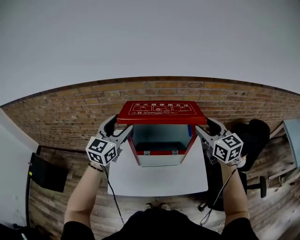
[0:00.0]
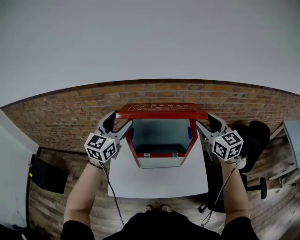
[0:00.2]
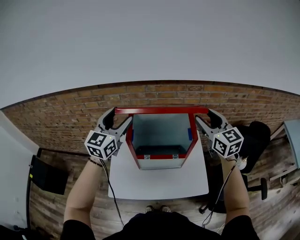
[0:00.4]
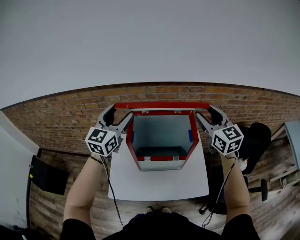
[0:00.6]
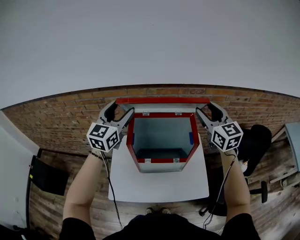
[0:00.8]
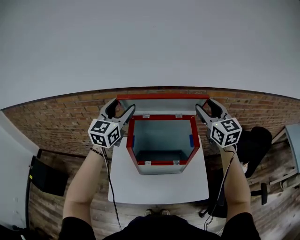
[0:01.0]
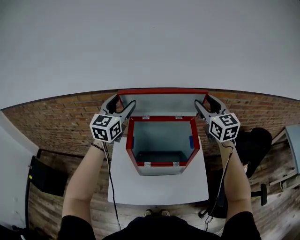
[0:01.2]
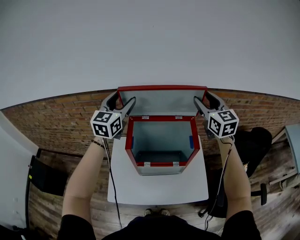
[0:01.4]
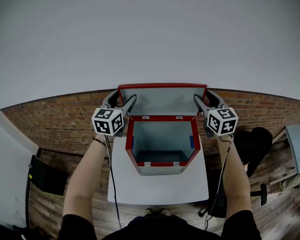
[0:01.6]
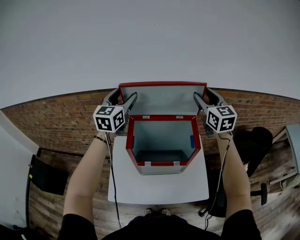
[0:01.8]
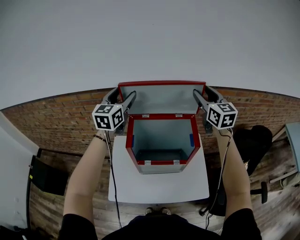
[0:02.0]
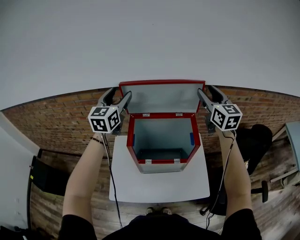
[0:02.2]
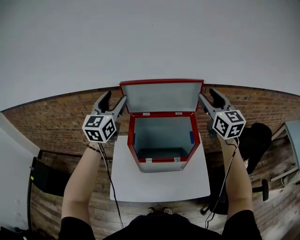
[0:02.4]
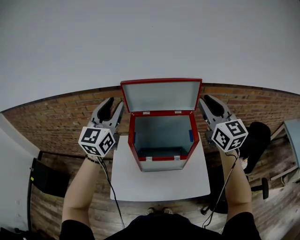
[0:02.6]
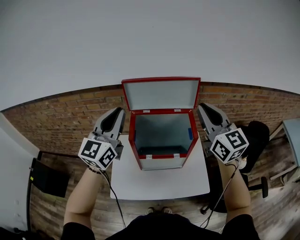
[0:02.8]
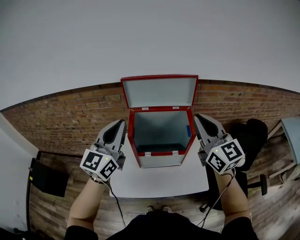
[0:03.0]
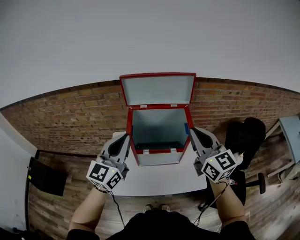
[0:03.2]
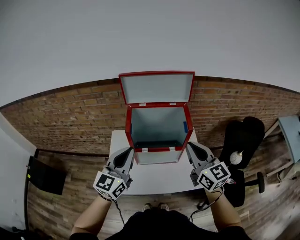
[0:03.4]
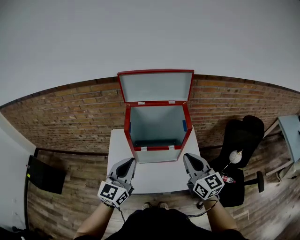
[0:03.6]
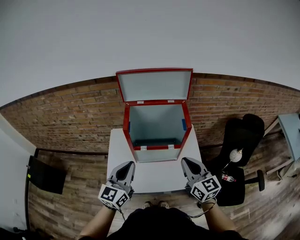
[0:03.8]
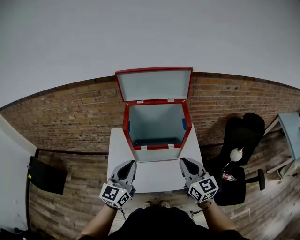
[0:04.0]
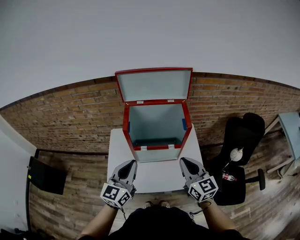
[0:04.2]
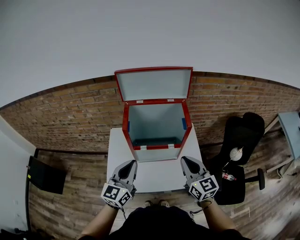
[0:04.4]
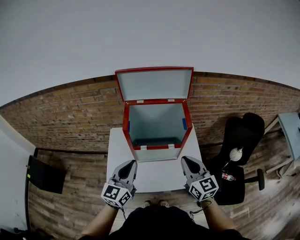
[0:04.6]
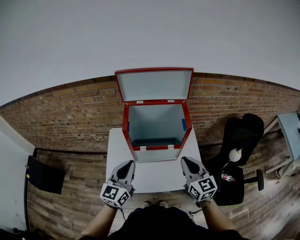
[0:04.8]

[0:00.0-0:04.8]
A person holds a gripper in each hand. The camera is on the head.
0:00.0 to 0:01.6: The two grippers go about 20 cm forward and upward.
0:01.6 to 0:03.2: Both grippers travel together backward, about 25 cm. The left gripper closes. Meanwhile the right gripper closes.
0:03.2 to 0:04.8: The two grippers go approximately 15 cm downward.

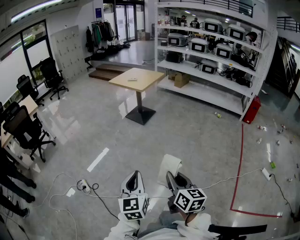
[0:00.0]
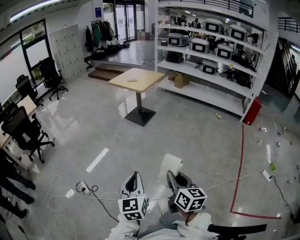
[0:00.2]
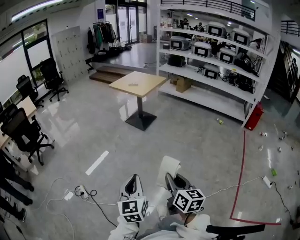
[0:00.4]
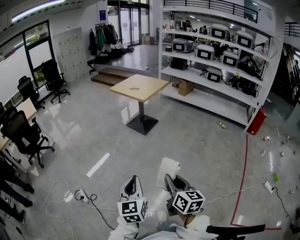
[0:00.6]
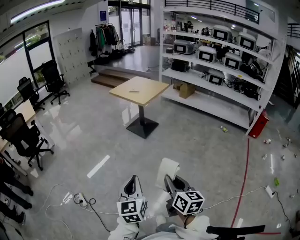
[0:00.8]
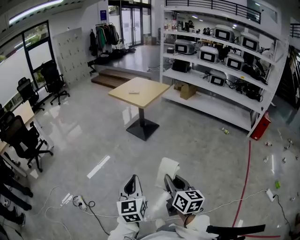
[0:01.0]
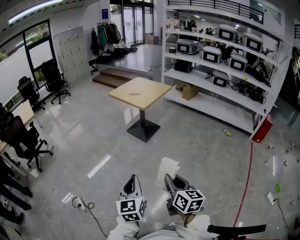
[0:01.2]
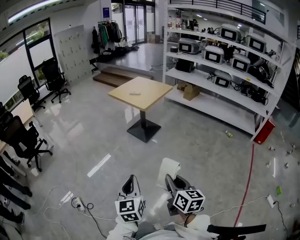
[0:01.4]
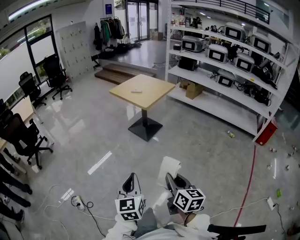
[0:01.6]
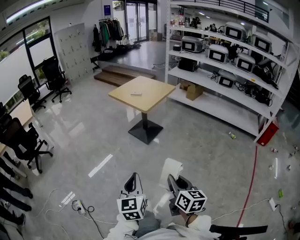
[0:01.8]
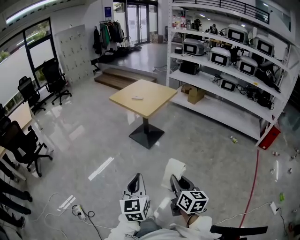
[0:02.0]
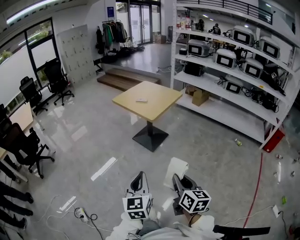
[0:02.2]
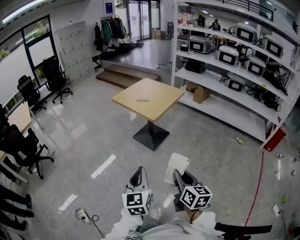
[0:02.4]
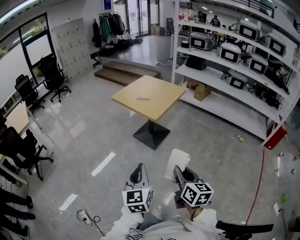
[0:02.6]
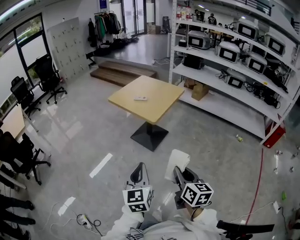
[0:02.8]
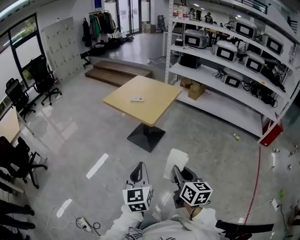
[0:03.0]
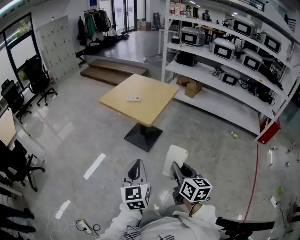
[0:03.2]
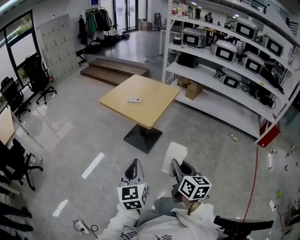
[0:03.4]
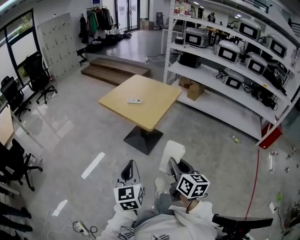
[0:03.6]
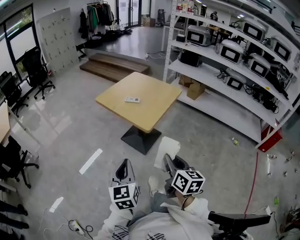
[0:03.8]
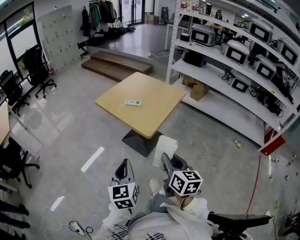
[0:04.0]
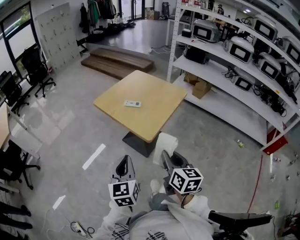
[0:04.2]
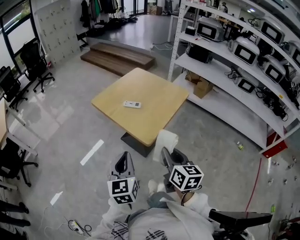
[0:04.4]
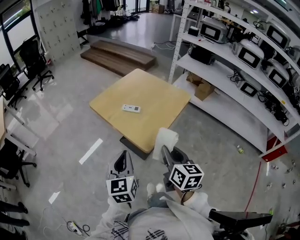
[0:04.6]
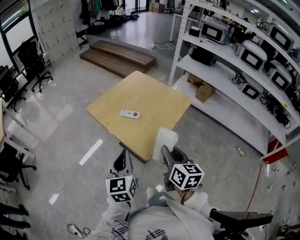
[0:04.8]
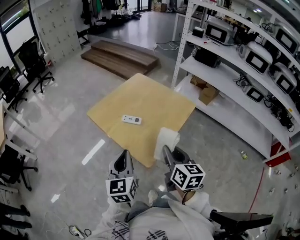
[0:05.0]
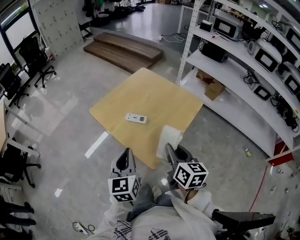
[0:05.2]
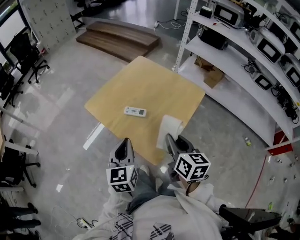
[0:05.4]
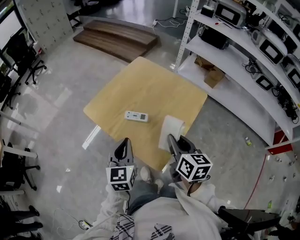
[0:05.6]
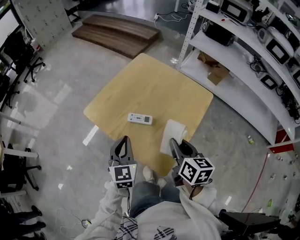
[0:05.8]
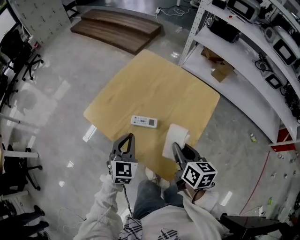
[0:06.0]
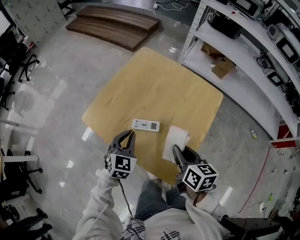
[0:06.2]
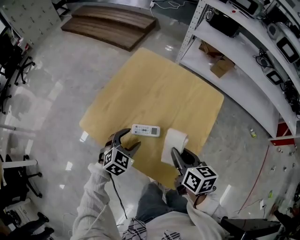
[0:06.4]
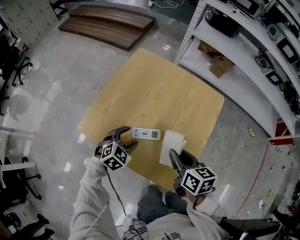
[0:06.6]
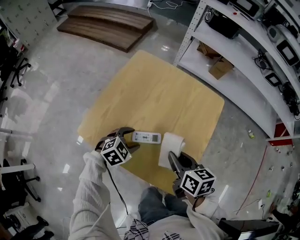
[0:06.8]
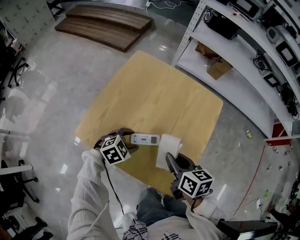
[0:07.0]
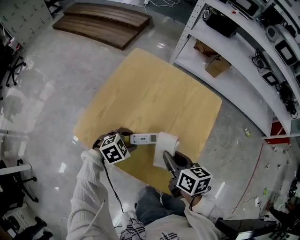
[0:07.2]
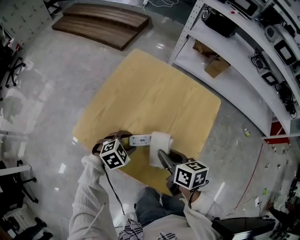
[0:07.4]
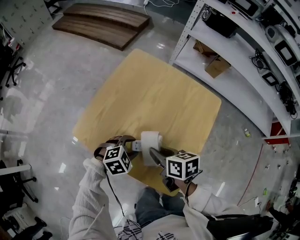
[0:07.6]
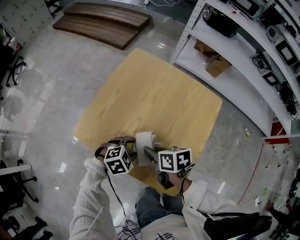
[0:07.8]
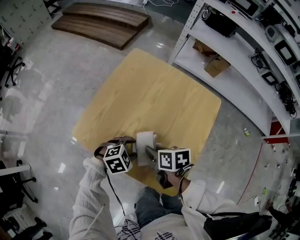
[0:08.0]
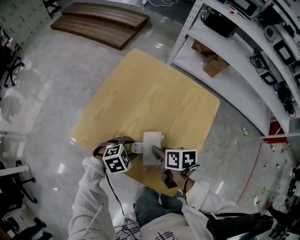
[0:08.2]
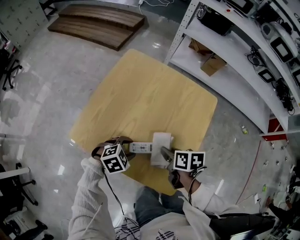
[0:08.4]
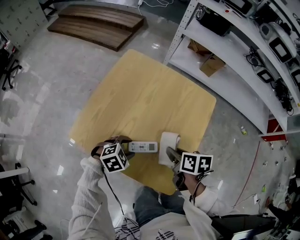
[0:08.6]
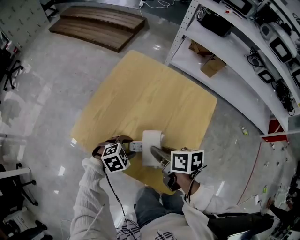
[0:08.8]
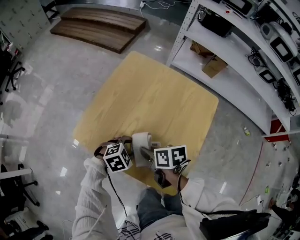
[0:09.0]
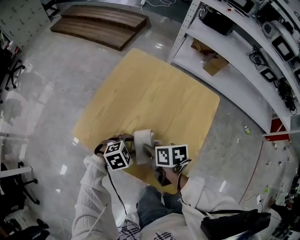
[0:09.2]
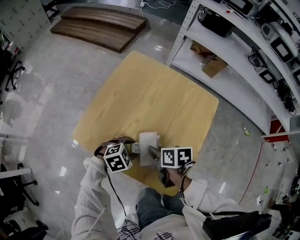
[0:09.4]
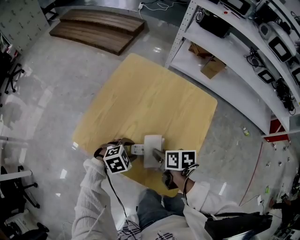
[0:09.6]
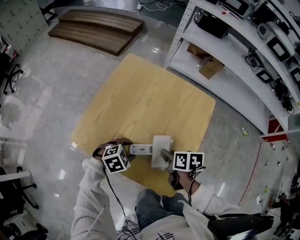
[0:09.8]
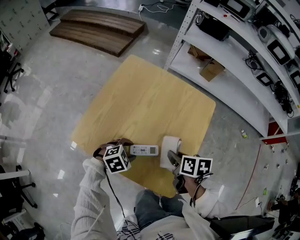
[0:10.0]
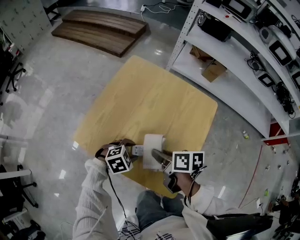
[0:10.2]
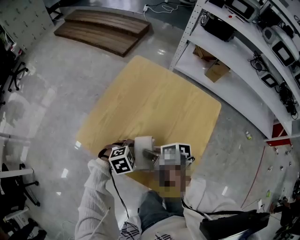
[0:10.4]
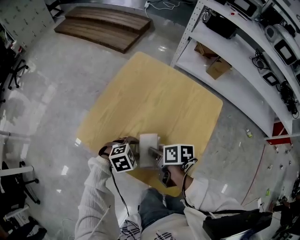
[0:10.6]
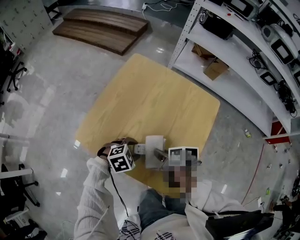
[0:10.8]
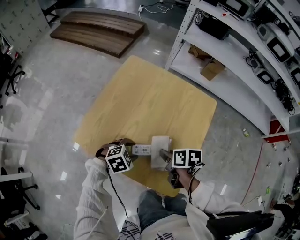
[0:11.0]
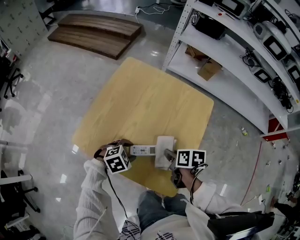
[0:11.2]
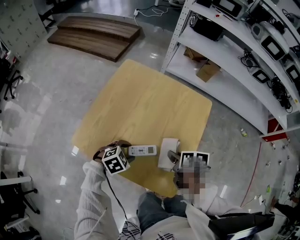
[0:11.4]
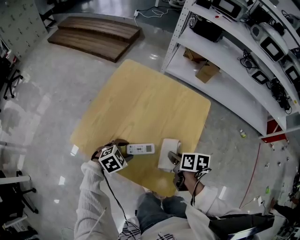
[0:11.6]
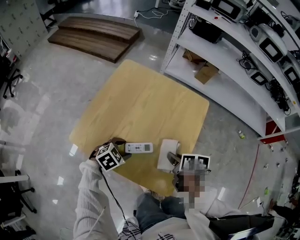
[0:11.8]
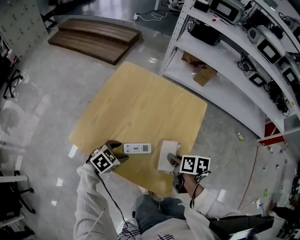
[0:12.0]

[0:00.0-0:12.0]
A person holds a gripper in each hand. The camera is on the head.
0:00.0 to 0:01.6: Both grippers move forward, approximately 30 cm.
0:01.6 to 0:03.0: The two grippers go about 30 cm forward.
0:03.0 to 0:04.4: Both grippers travel together forward, about 30 cm.
0:04.4 to 0:06.0: The two grippers go roughly 30 cm forward. The left gripper changes its angle by some 30 degrees.
0:06.0 to 0:07.6: The right gripper changes place by roughly 15 cm, and rotates about 20 degrees; the left gripper is displaced downward by approximately 10 cm, points its fingers roughly 30 degrees further downward, and opens.
0:10.4 to 0:12.0: The right gripper moves roughly 15 cm, and swivels approximately 20 degrees.

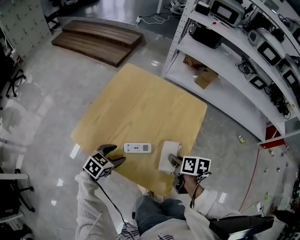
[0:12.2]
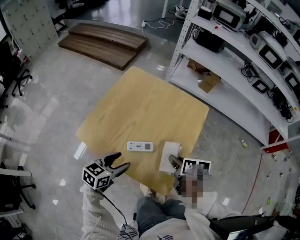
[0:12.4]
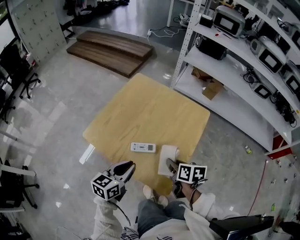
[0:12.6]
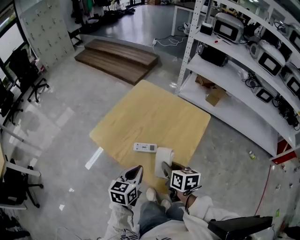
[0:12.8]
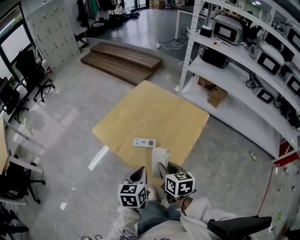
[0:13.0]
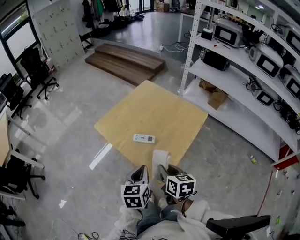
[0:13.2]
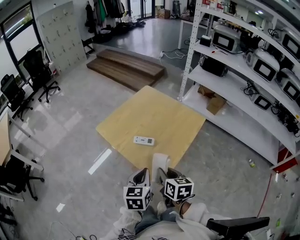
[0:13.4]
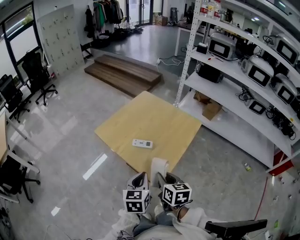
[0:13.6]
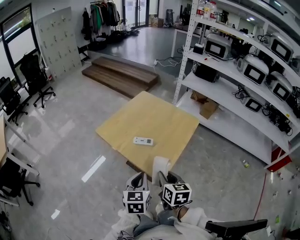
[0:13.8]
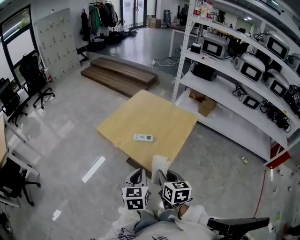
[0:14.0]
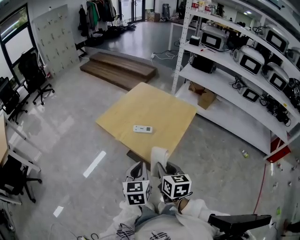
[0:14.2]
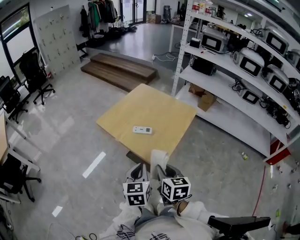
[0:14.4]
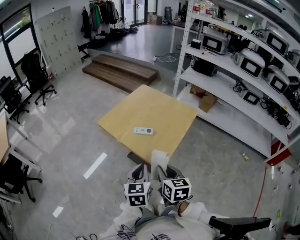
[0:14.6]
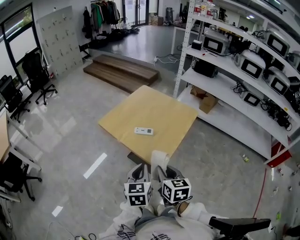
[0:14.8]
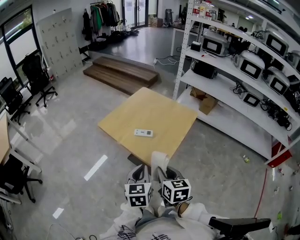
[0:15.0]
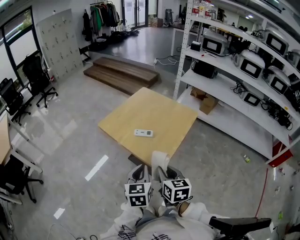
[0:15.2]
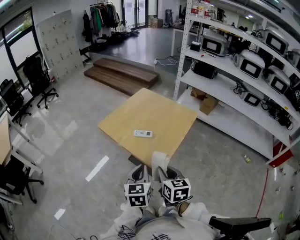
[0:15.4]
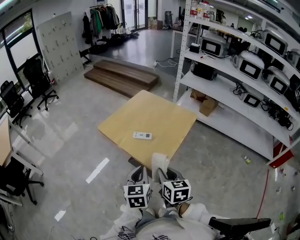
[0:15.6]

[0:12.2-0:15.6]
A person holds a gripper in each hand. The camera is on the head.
0:12.2 to 0:13.8: The left gripper changes place by roughly 30 cm, changes its angle by about 50 degrees, and closes its fingers, while the right gripper shifts by about 25 cm, and turns by approximately 40 degrees.
0:13.8 to 0:15.6: The right gripper shifts by approximately 5 cm.

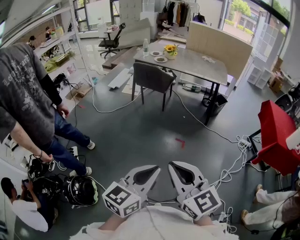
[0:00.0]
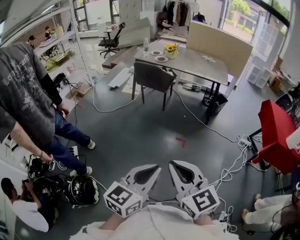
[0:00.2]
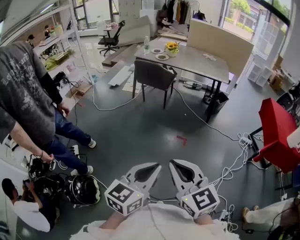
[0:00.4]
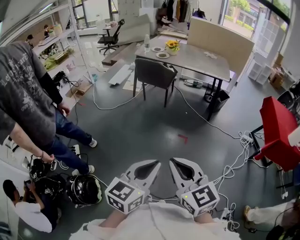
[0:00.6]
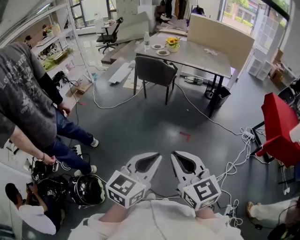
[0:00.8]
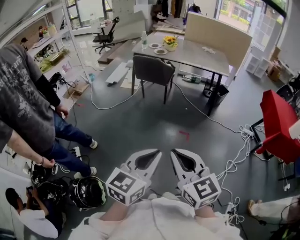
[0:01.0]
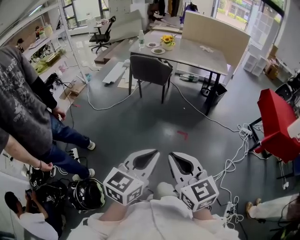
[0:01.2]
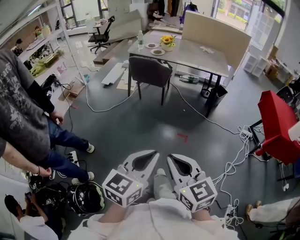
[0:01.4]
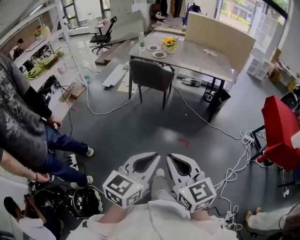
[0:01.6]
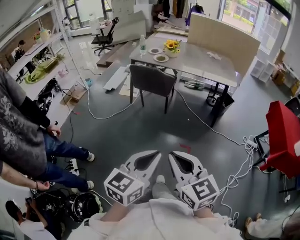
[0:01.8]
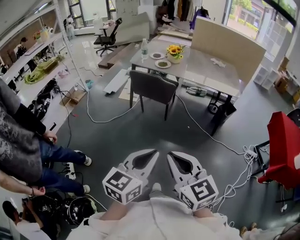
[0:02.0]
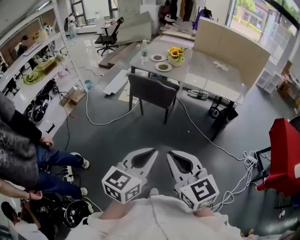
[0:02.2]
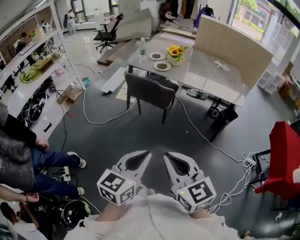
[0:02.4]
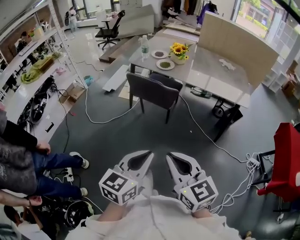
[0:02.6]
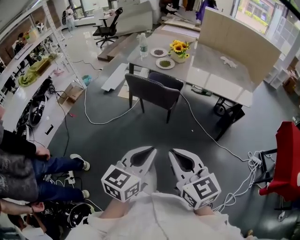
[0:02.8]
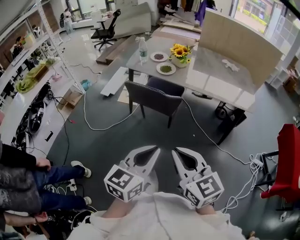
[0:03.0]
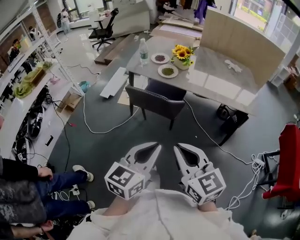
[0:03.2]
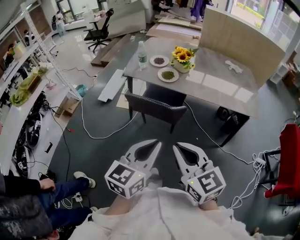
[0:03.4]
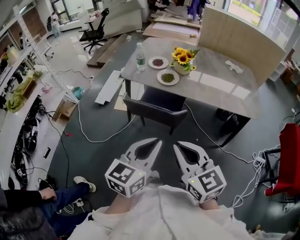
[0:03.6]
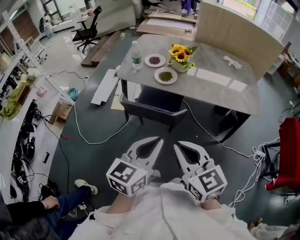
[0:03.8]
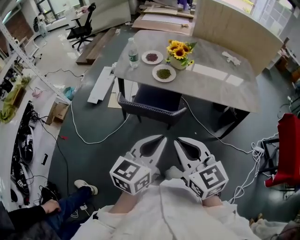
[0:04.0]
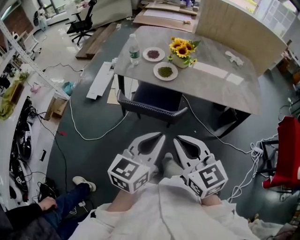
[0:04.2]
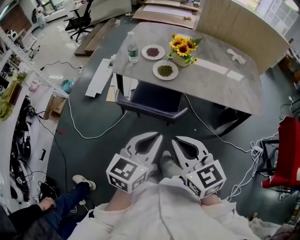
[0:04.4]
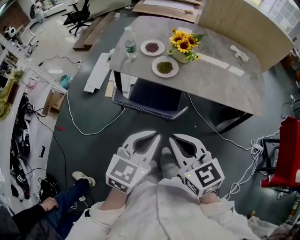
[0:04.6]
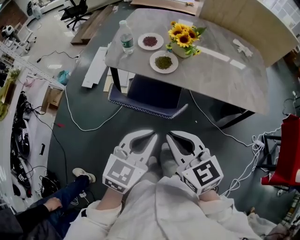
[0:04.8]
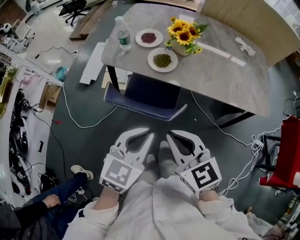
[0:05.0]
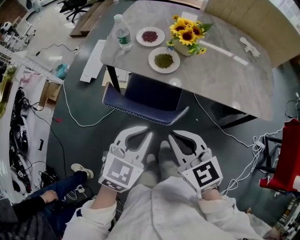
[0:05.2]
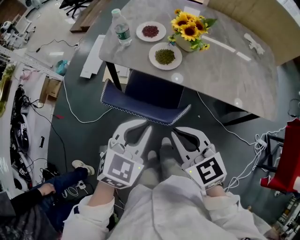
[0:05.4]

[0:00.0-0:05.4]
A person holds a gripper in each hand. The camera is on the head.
0:00.0 to 0:01.4: The left gripper goes some 15 cm forward and to the left; the right gripper travels forward, to the left and downward by some 15 cm.
0:01.4 to 0:02.8: The pair of grippers is taken forward, about 40 cm.
0:02.8 to 0:04.0: Both grippers move forward, about 30 cm.
0:04.0 to 0:05.4: The two grippers go some 20 cm forward and downward. The left gripper swivels approximately 40 degrees.